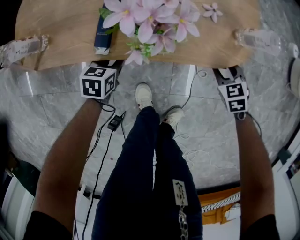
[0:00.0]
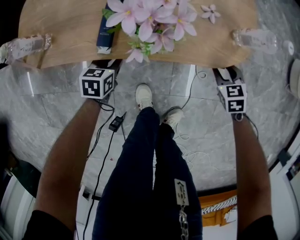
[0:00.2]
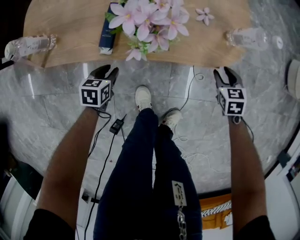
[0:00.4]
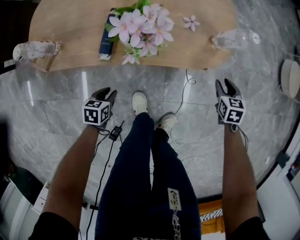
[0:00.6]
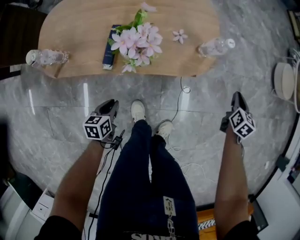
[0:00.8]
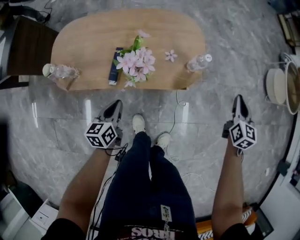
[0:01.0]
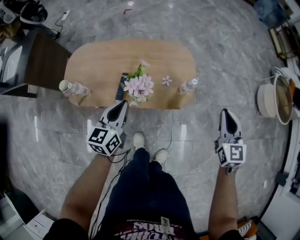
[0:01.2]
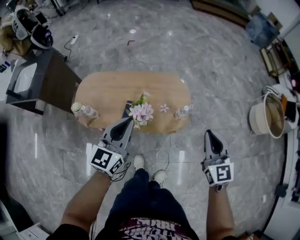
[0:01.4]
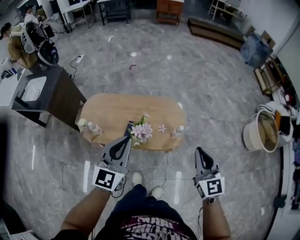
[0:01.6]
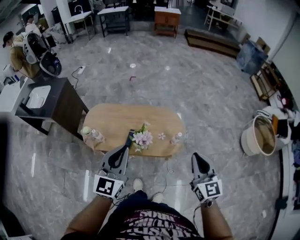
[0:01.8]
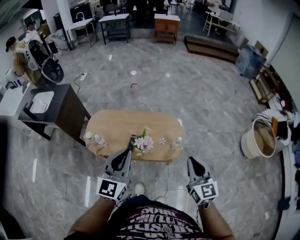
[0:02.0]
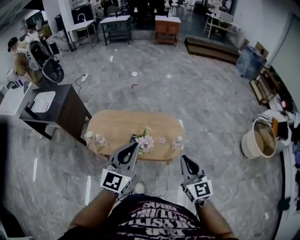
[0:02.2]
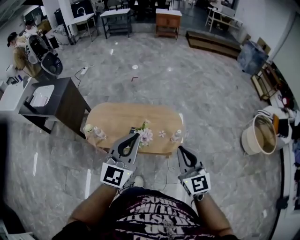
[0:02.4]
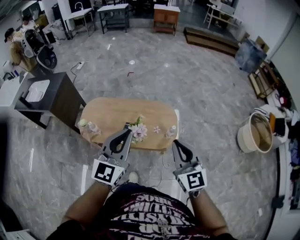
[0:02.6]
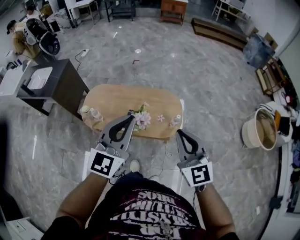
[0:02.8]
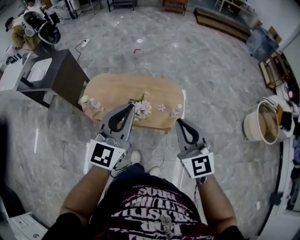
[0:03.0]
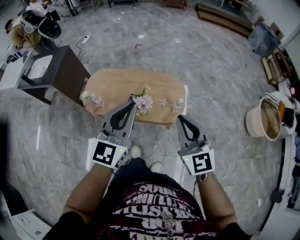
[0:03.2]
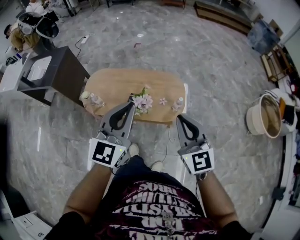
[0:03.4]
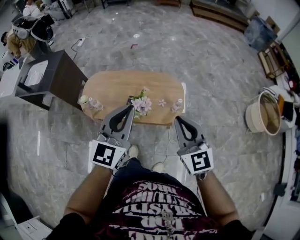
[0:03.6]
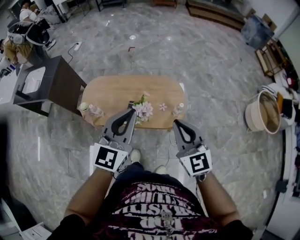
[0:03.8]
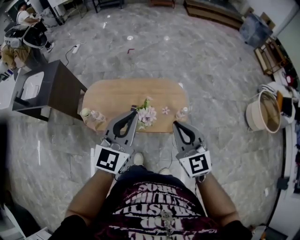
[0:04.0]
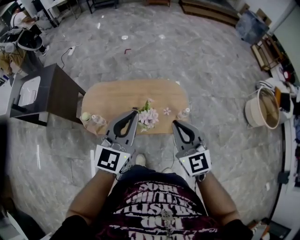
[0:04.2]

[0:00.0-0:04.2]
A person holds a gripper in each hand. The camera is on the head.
0:00.0 to 0:01.4: Both grippers travel together upward, roughly 60 cm. The left gripper points its fingers roughly 50 degrees further upward, and closes its fingers. Meanwhile the right gripper points its fingers roughly 50 degrees further upward, and closes up.
0:01.4 to 0:02.8: The left gripper moves upward and backward, some 20 cm. Meanwhile the right gripper moves upward, to the left and backward, some 20 cm.
0:02.8 to 0:04.2: Both grippers travel together forward and to the left, approximately 10 cm.

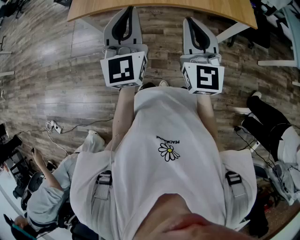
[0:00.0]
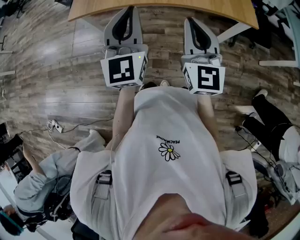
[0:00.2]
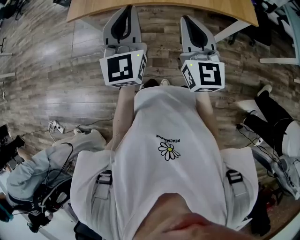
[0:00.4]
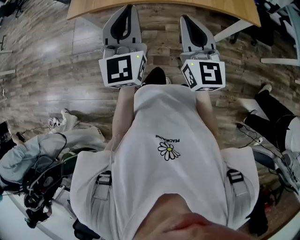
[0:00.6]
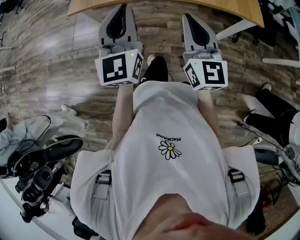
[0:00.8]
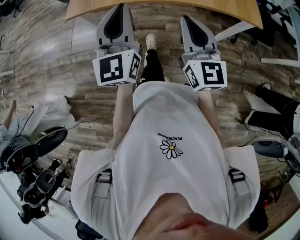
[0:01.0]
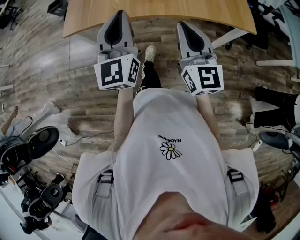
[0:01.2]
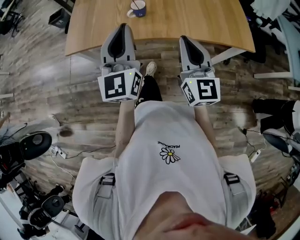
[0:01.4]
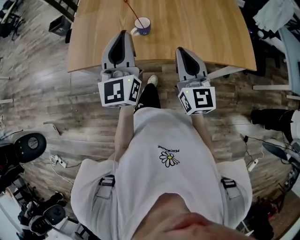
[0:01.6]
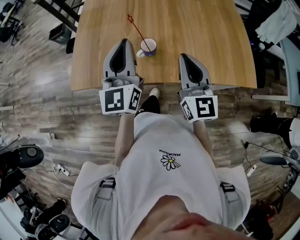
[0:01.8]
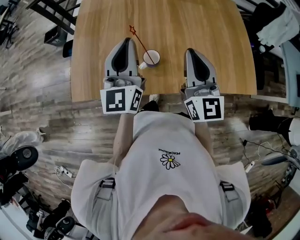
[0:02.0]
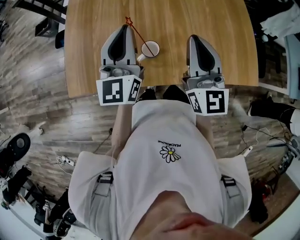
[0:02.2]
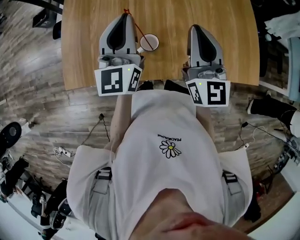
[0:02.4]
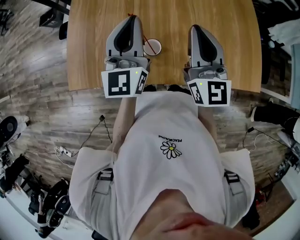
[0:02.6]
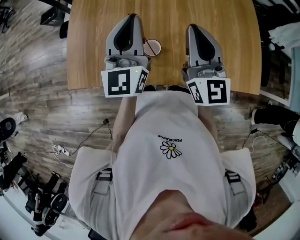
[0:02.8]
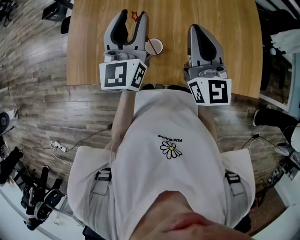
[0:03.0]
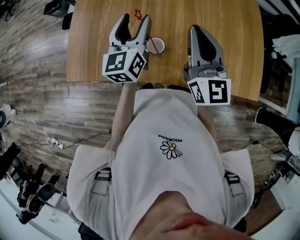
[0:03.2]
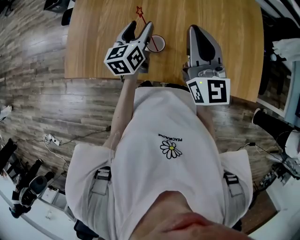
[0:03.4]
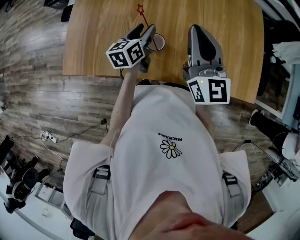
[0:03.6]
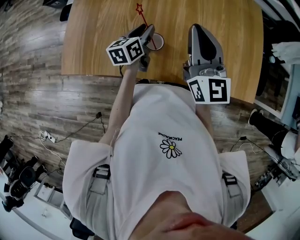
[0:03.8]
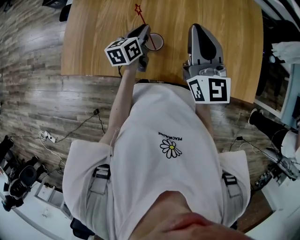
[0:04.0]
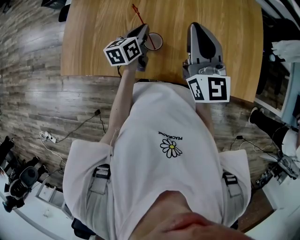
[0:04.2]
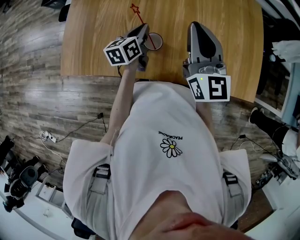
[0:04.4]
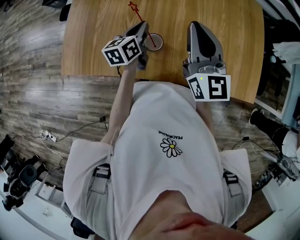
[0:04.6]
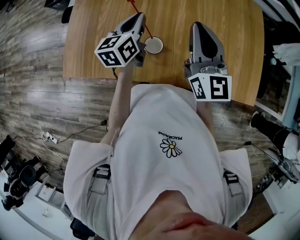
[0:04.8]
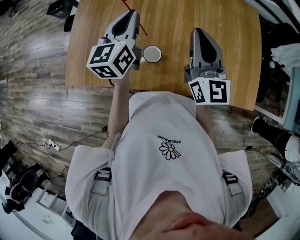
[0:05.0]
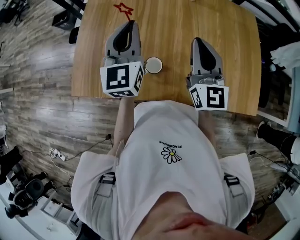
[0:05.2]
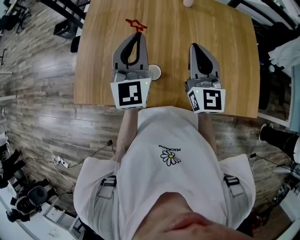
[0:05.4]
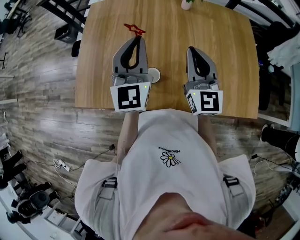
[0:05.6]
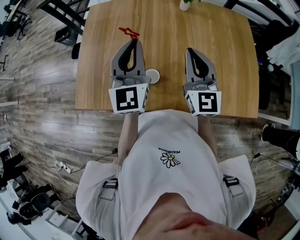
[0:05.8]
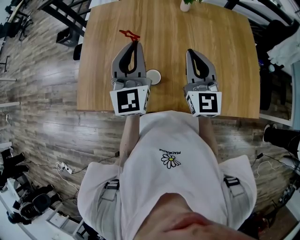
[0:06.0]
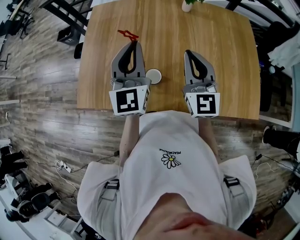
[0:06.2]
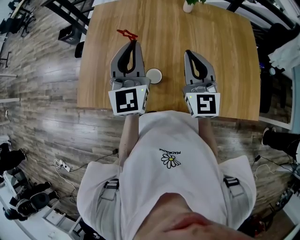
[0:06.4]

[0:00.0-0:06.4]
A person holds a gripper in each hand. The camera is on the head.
0:00.0 to 0:01.6: The two grippers go some 20 cm forward.
0:01.6 to 0:03.2: The two grippers go approximately 25 cm forward. The left gripper rotates roughly 20 degrees, and opens up.
0:03.2 to 0:04.8: The left gripper heads downward, covering some 5 cm, and closes.
0:04.8 to 0:06.4: The left gripper is displaced upward by about 15 cm, and changes its angle by roughly 40 degrees.

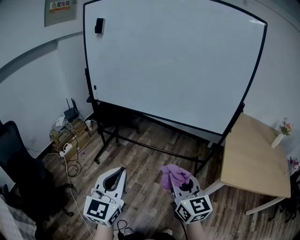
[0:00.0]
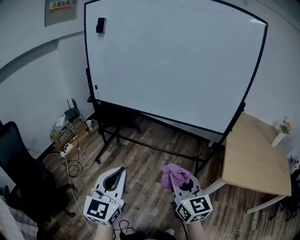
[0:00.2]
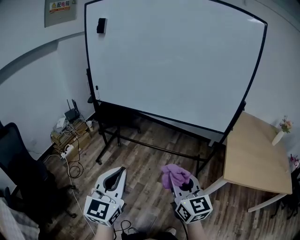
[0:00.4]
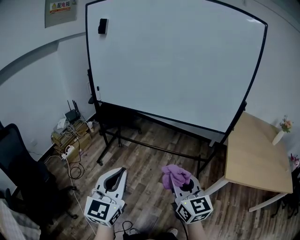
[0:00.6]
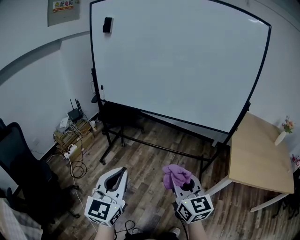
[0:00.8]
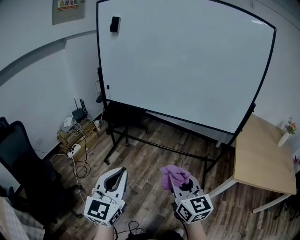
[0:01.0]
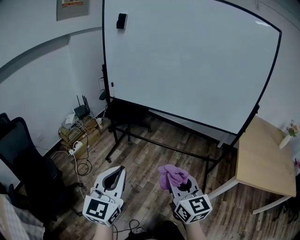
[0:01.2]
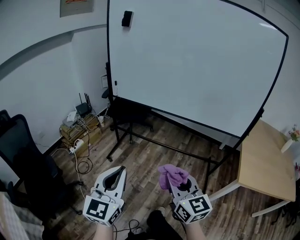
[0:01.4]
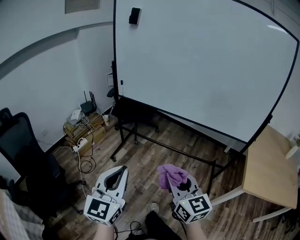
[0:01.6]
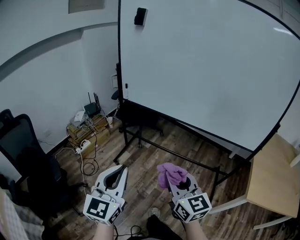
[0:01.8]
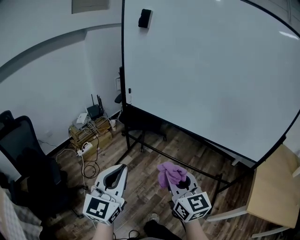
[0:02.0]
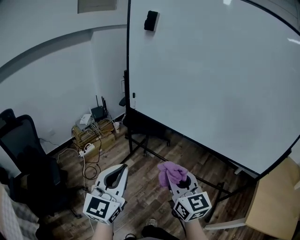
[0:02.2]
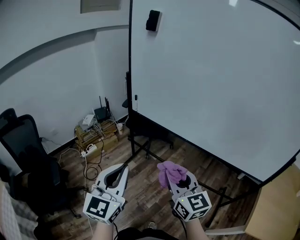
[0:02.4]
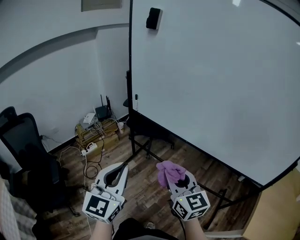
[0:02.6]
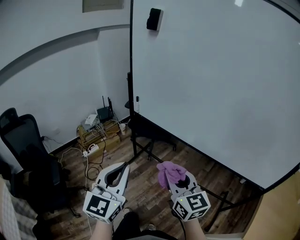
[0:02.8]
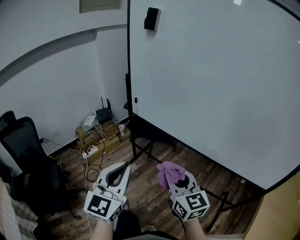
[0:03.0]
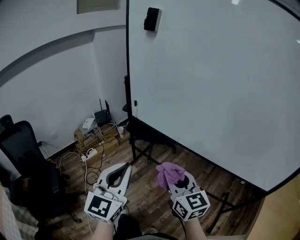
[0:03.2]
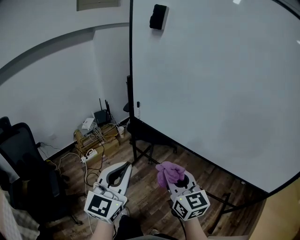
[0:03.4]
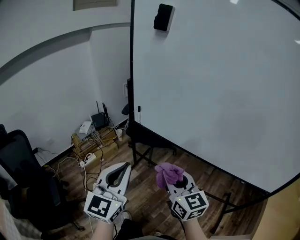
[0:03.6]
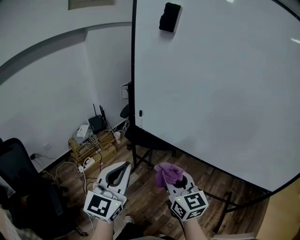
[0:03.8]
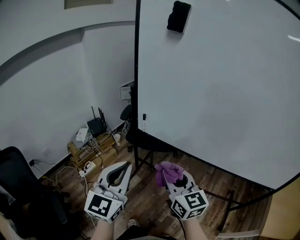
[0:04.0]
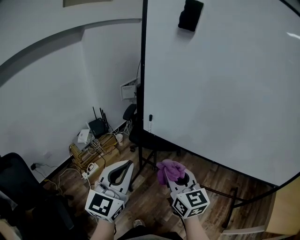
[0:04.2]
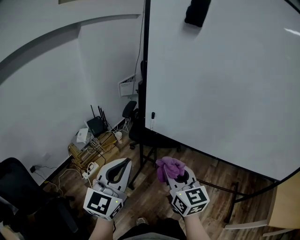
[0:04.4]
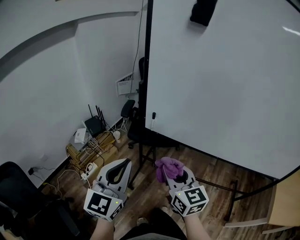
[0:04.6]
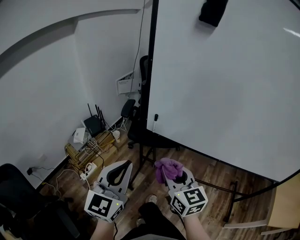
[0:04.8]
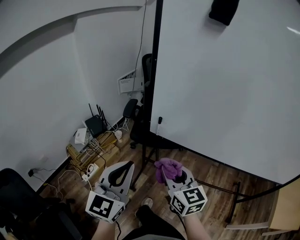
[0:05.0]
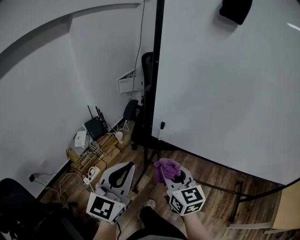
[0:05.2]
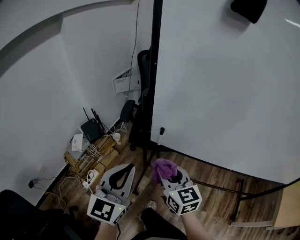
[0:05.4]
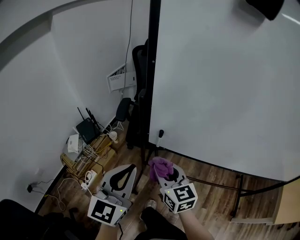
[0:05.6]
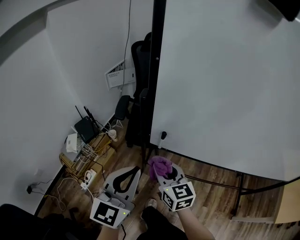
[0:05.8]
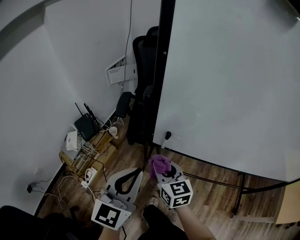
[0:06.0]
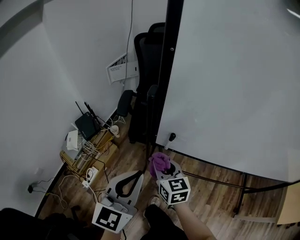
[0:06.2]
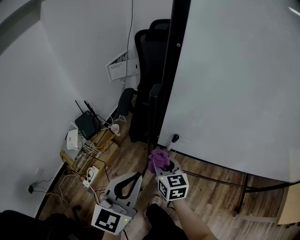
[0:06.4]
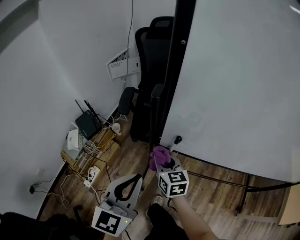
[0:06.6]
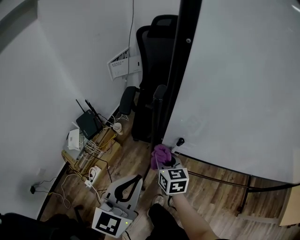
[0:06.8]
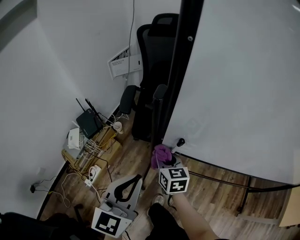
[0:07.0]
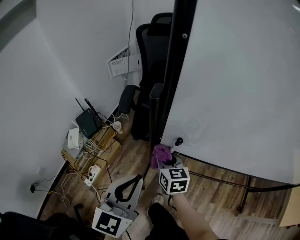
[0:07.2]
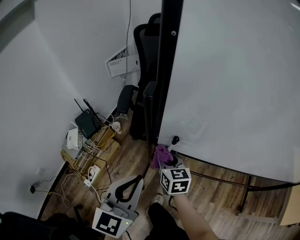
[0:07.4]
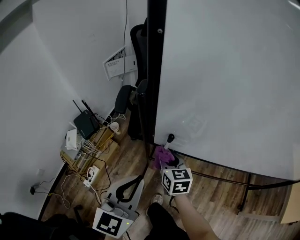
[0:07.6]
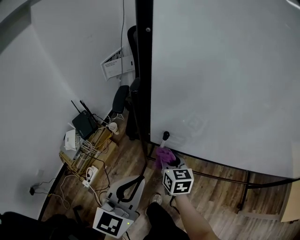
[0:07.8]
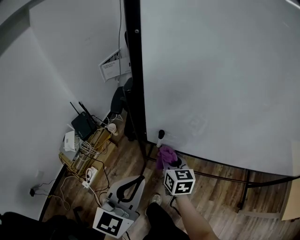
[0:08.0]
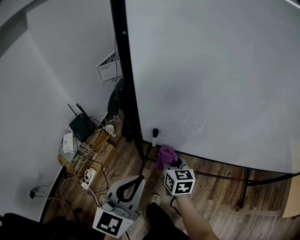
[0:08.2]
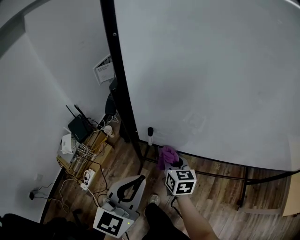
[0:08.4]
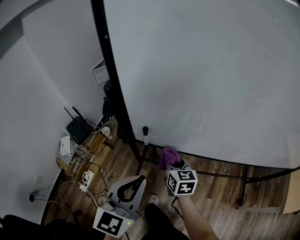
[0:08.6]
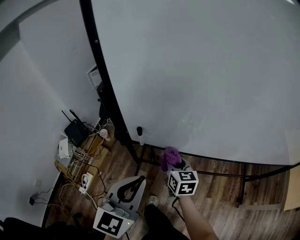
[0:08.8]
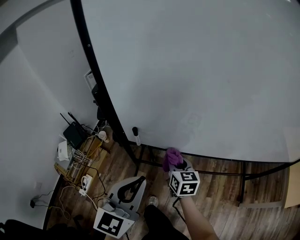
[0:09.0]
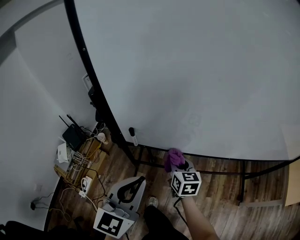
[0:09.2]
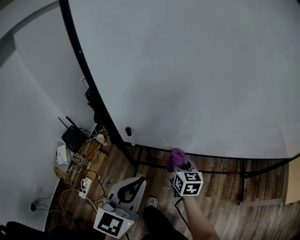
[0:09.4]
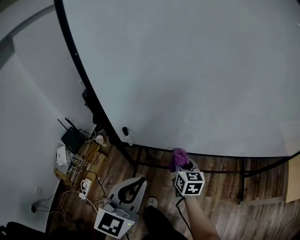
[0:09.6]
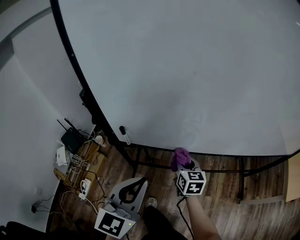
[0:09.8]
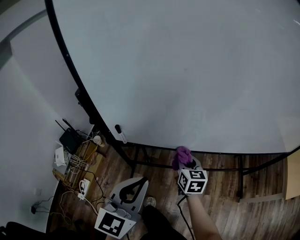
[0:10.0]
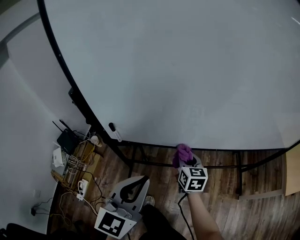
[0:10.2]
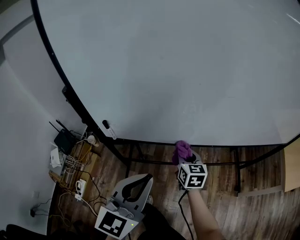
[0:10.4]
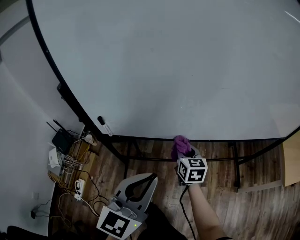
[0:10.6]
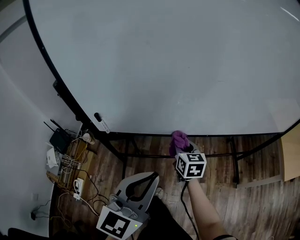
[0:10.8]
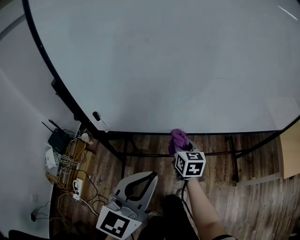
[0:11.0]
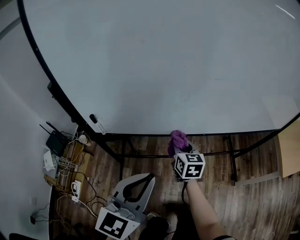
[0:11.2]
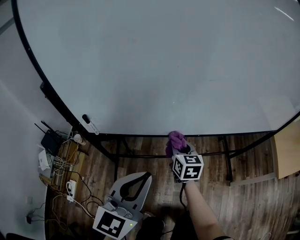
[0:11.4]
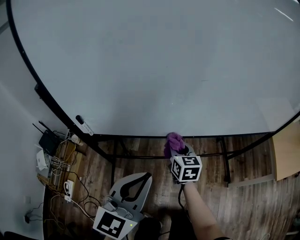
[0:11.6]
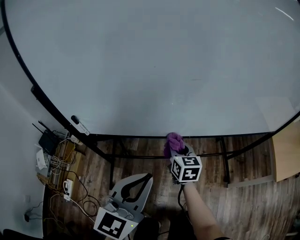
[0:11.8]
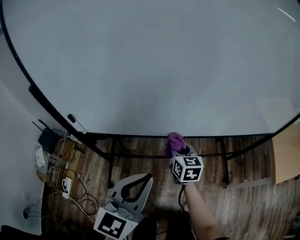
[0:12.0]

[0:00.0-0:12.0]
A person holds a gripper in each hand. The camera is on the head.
0:00.0 to 0:01.6: Both grippers travel together to the left, roughly 15 cm.
0:01.6 to 0:03.0: The two grippers go approximately 25 cm forward.
0:03.0 to 0:04.4: The two grippers go some 30 cm forward and to the left.
0:04.4 to 0:06.0: The left gripper travels forward and downward by some 25 cm. Meanwhile the right gripper moves forward, downward and to the left, roughly 30 cm.
0:06.0 to 0:07.6: The right gripper is displaced downward and forward by some 10 cm.
0:07.6 to 0:09.0: The grippers both shift to the right by about 10 cm.
0:09.0 to 0:10.4: Both grippers travel together to the right, approximately 15 cm.
0:10.4 to 0:12.0: The grippers both shift to the right by roughly 10 cm.

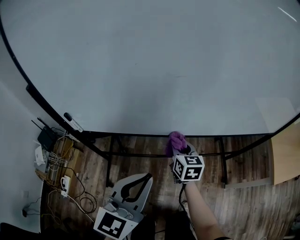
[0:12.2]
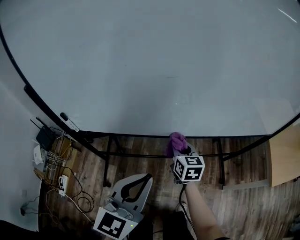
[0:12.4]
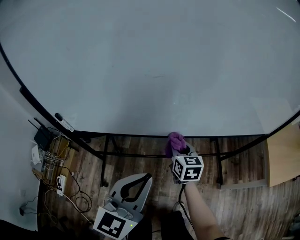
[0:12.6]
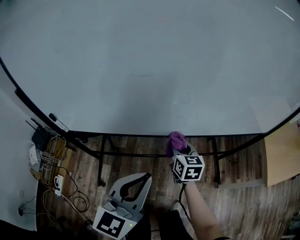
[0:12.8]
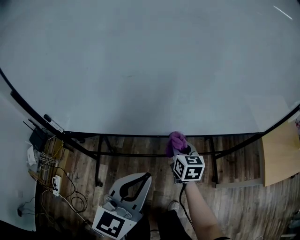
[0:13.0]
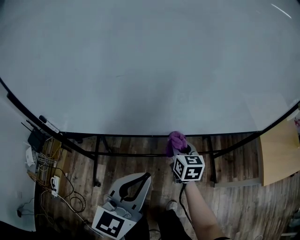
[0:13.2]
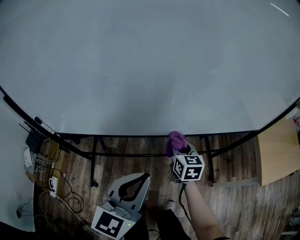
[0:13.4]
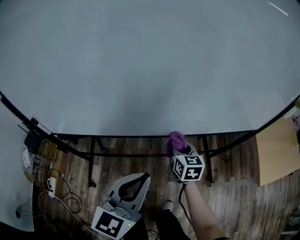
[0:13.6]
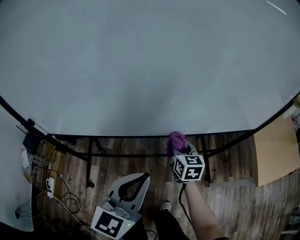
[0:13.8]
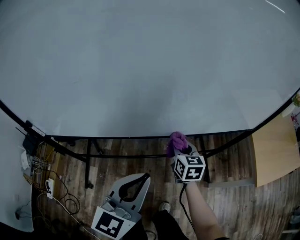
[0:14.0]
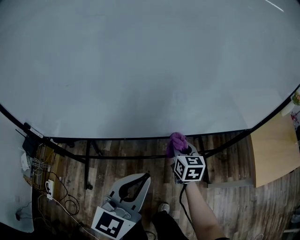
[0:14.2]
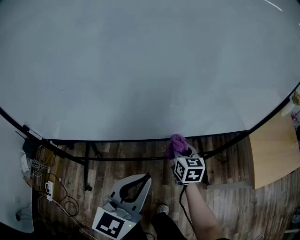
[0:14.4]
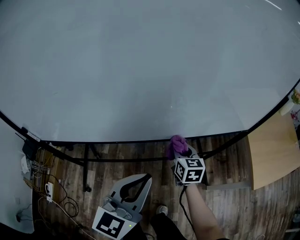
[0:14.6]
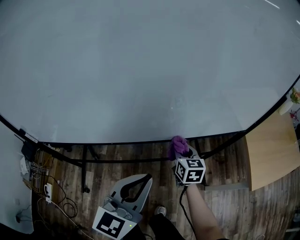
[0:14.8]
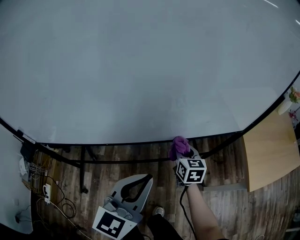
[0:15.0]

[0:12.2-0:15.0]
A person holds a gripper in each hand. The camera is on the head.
0:12.2 to 0:13.6: The two grippers go about 15 cm to the right.
0:13.6 to 0:15.0: Both grippers move to the right, roughly 15 cm.
